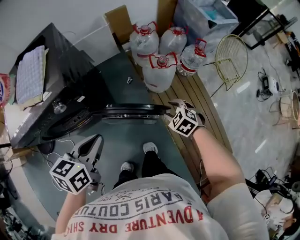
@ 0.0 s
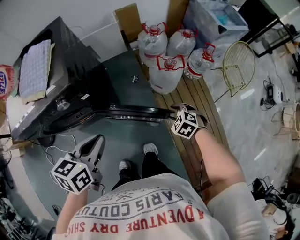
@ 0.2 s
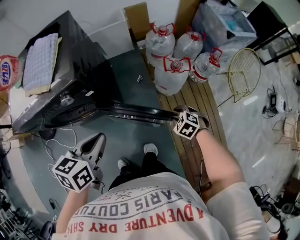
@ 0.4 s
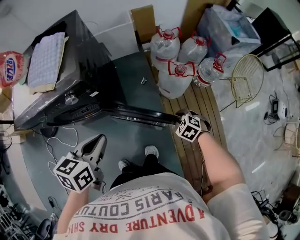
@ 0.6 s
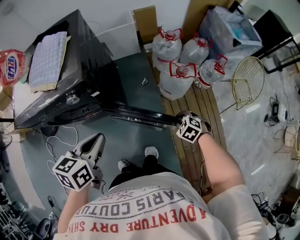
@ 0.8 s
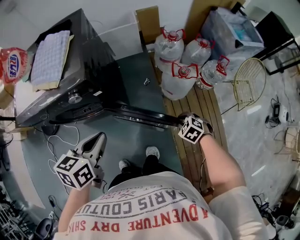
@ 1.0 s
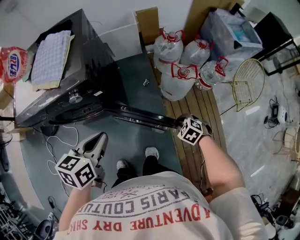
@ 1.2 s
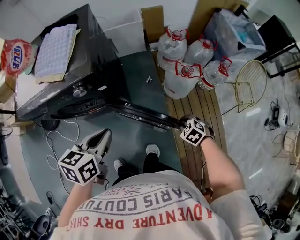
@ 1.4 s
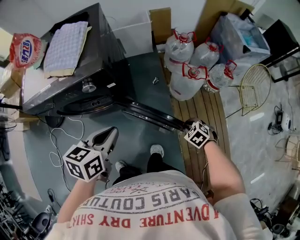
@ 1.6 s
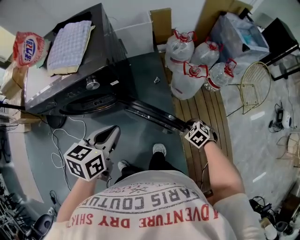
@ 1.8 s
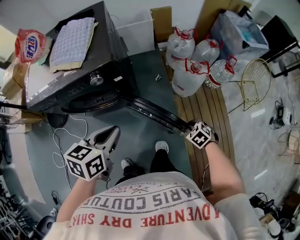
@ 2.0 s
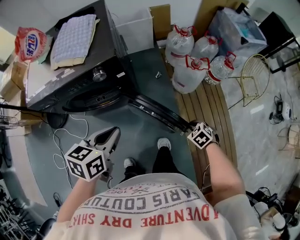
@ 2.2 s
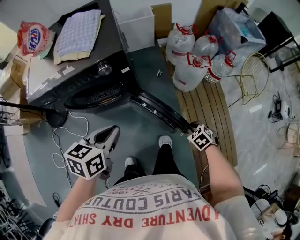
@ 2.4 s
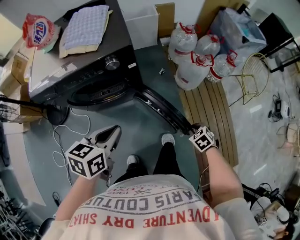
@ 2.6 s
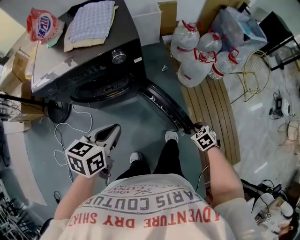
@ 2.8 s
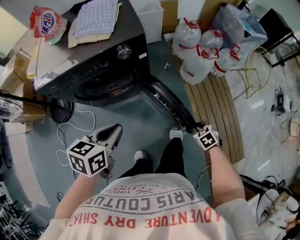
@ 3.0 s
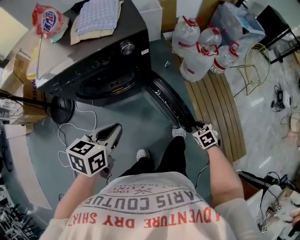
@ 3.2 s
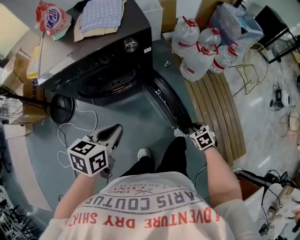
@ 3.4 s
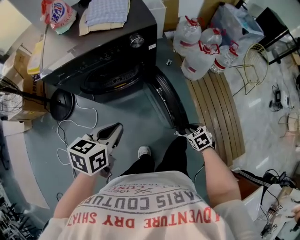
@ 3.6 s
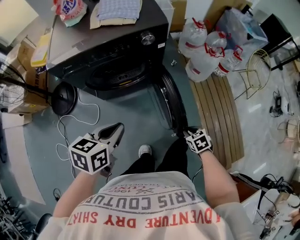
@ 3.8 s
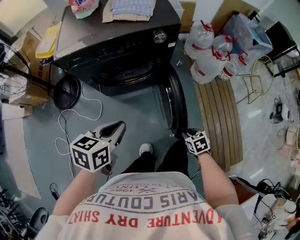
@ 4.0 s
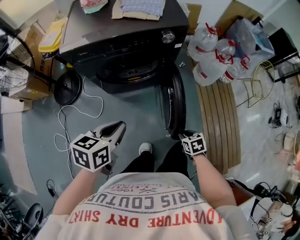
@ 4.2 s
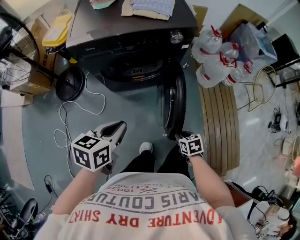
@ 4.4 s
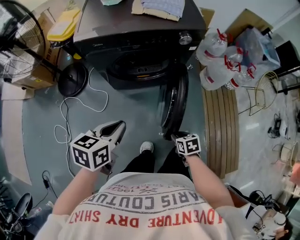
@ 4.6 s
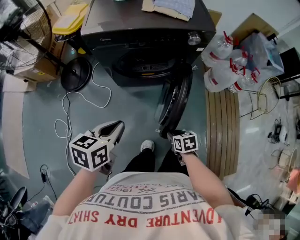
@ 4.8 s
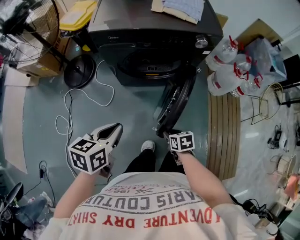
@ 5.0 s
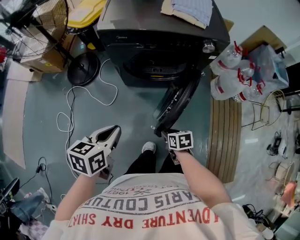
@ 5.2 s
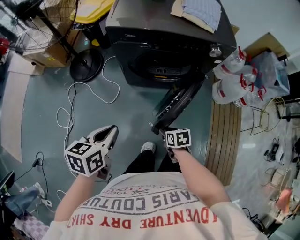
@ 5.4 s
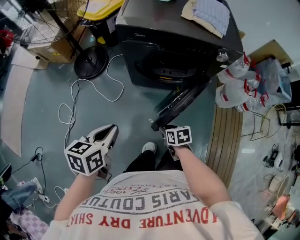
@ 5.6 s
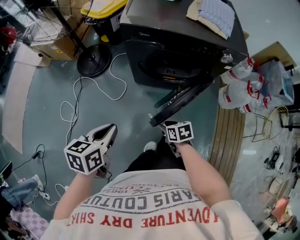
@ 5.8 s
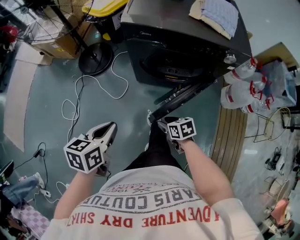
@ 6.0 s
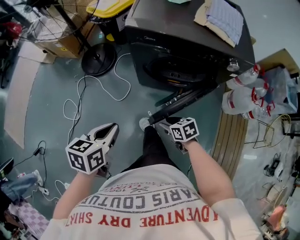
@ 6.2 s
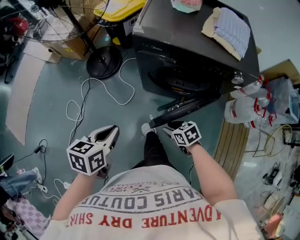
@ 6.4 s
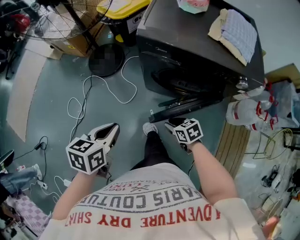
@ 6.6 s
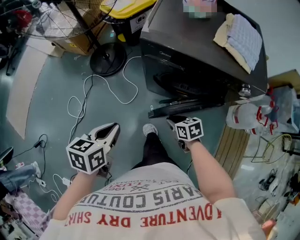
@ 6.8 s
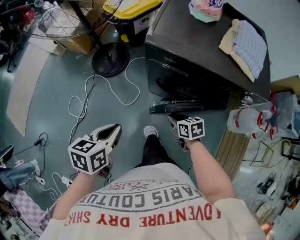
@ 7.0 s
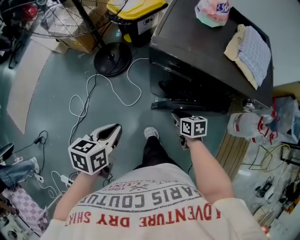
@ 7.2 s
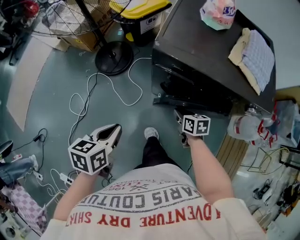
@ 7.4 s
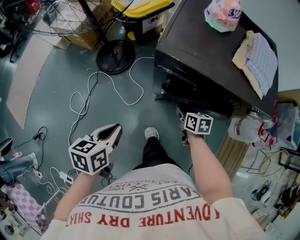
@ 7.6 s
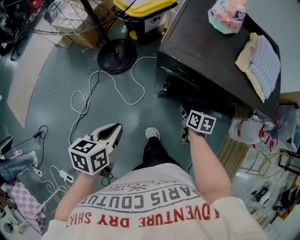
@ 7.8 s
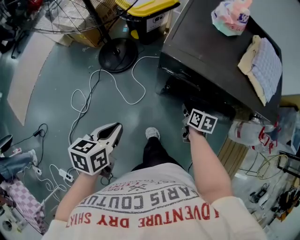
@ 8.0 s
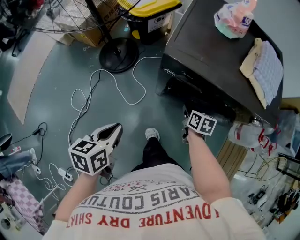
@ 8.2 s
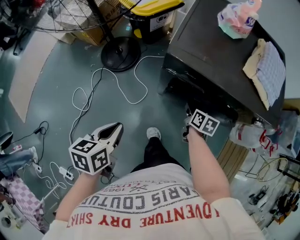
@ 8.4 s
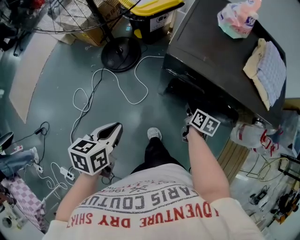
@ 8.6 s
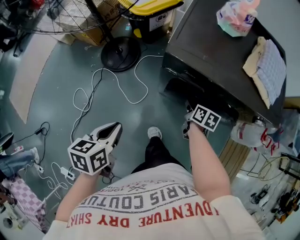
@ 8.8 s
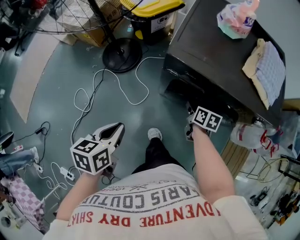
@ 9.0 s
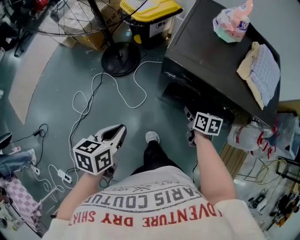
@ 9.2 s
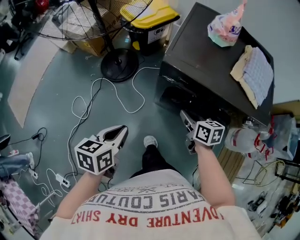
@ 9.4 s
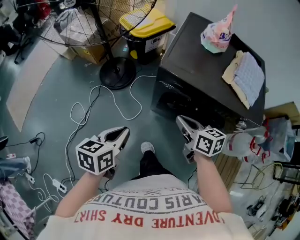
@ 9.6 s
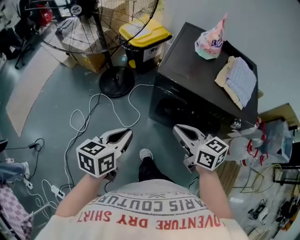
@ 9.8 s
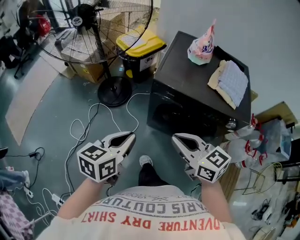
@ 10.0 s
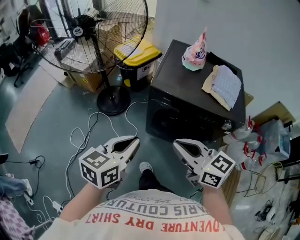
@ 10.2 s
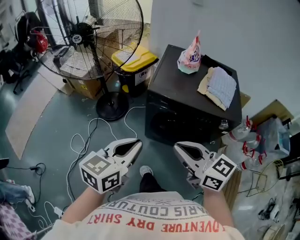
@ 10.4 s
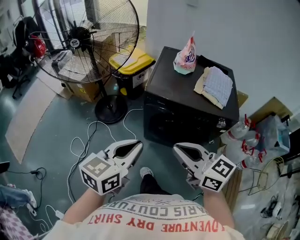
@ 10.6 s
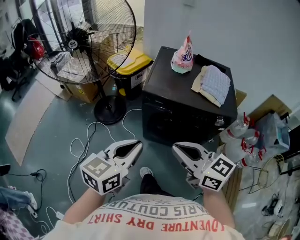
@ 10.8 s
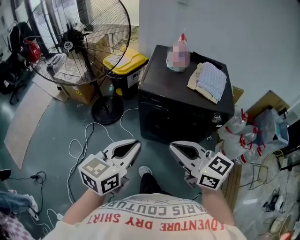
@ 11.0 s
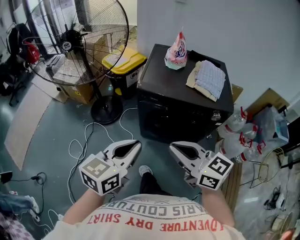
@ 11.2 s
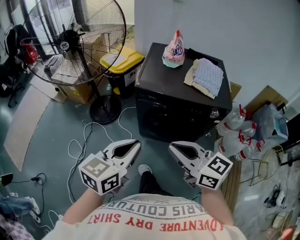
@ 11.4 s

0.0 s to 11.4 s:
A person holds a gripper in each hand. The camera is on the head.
0.0 to 1.4 s: The right gripper shifts by roughly 5 cm, and closes up.
1.4 to 2.8 s: The right gripper shifts about 20 cm backward and to the left, and changes its angle by some 20 degrees, while the left gripper goes roughly 20 cm to the left and backward.
2.8 to 4.2 s: Both grippers move to the left and backward, approximately 20 cm.
4.2 to 5.6 s: The left gripper ends up about 20 cm from where it was, and changes its angle by about 20 degrees; the right gripper moves roughly 25 cm.
5.6 to 7.2 s: The right gripper heads forward, covering some 25 cm, and closes. Meanwhile the left gripper travels forward by some 15 cm.
7.2 to 8.6 s: The right gripper moves forward, some 10 cm, and changes its angle by roughly 20 degrees.
8.6 to 10.0 s: The right gripper heads upward and backward, covering roughly 35 cm, and rotates about 50 degrees. The left gripper is displaced upward and to the right by about 15 cm, and changes its angle by roughly 20 degrees.
10.0 to 11.4 s: The right gripper is displaced backward and upward by about 10 cm; the left gripper travels upward, to the right and backward by approximately 10 cm.

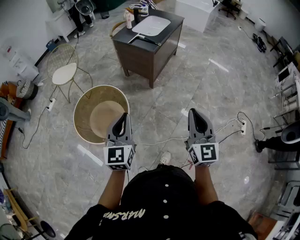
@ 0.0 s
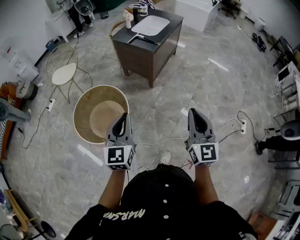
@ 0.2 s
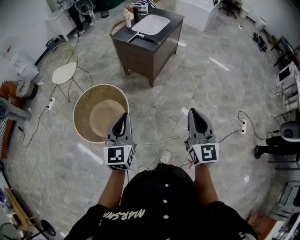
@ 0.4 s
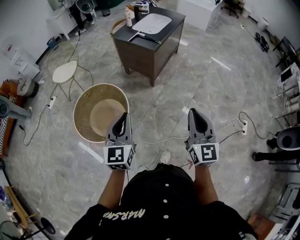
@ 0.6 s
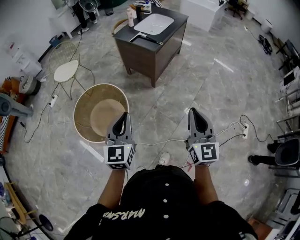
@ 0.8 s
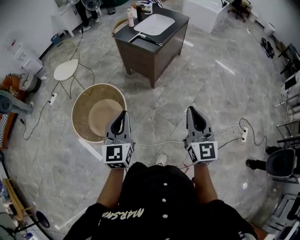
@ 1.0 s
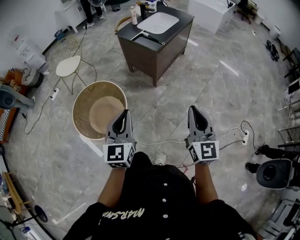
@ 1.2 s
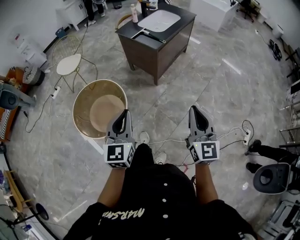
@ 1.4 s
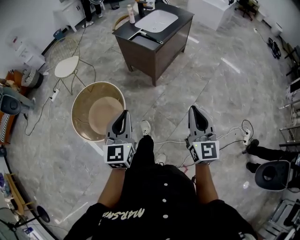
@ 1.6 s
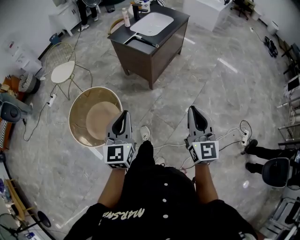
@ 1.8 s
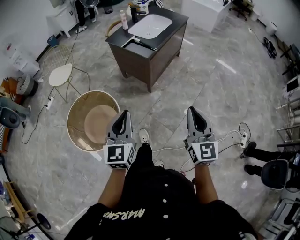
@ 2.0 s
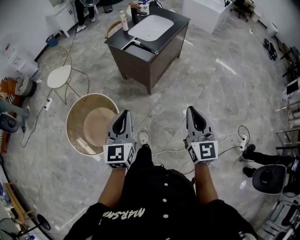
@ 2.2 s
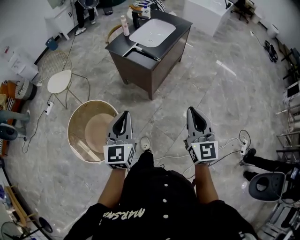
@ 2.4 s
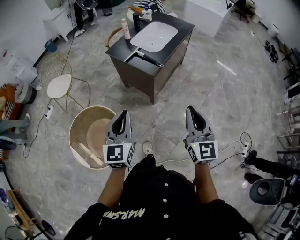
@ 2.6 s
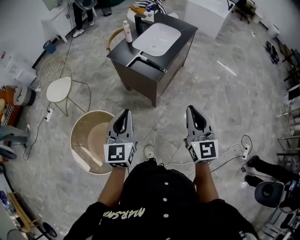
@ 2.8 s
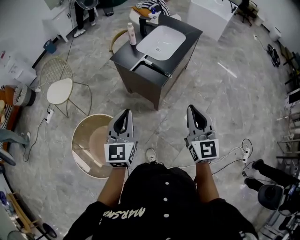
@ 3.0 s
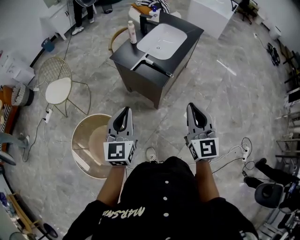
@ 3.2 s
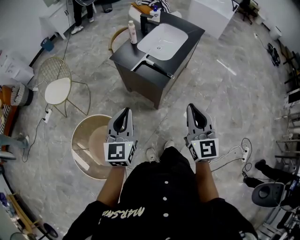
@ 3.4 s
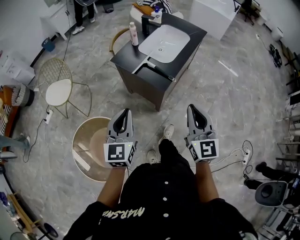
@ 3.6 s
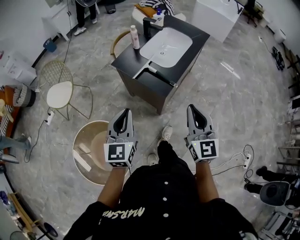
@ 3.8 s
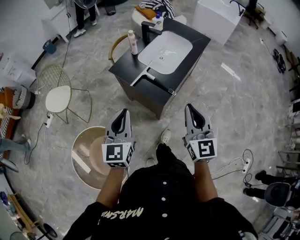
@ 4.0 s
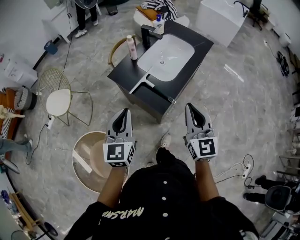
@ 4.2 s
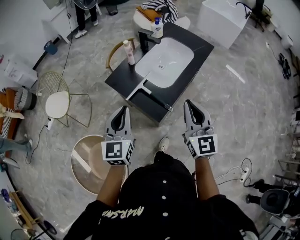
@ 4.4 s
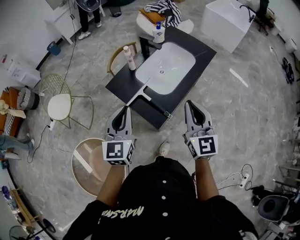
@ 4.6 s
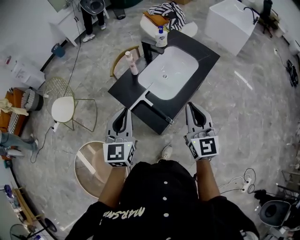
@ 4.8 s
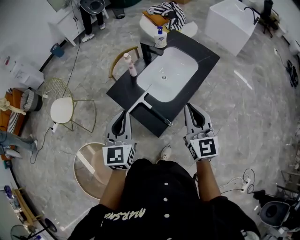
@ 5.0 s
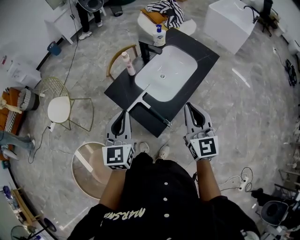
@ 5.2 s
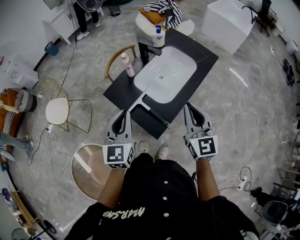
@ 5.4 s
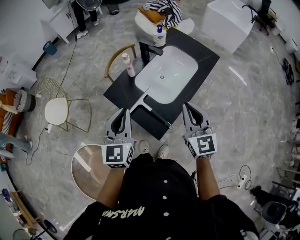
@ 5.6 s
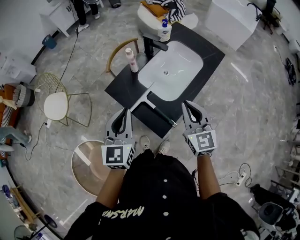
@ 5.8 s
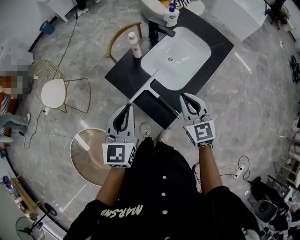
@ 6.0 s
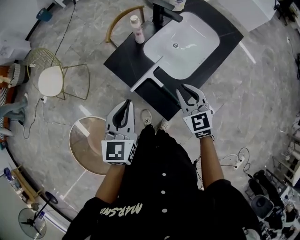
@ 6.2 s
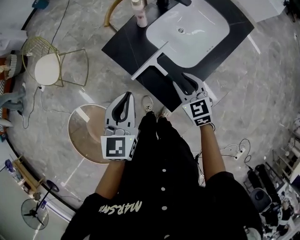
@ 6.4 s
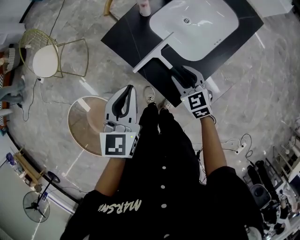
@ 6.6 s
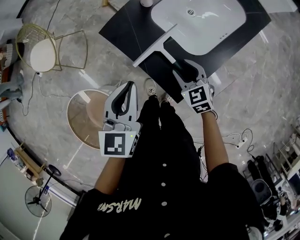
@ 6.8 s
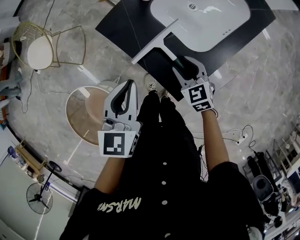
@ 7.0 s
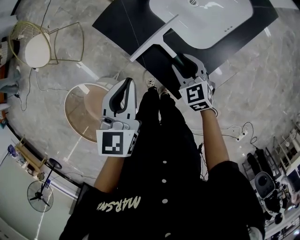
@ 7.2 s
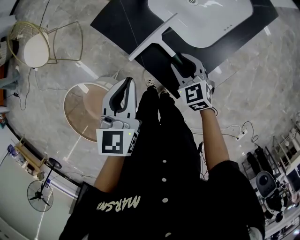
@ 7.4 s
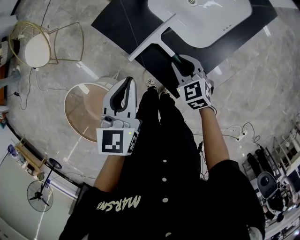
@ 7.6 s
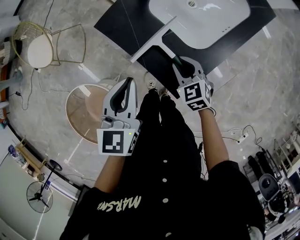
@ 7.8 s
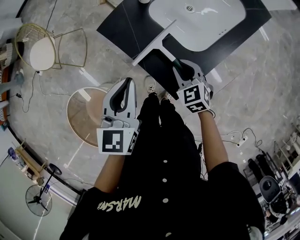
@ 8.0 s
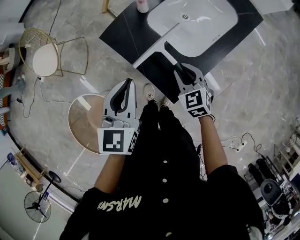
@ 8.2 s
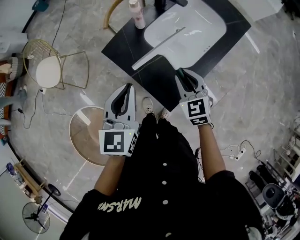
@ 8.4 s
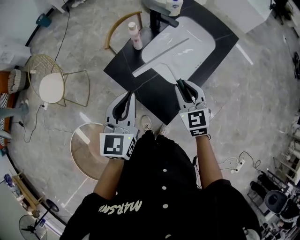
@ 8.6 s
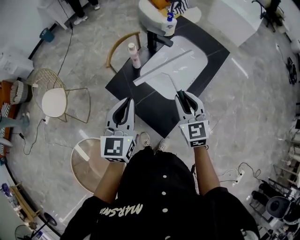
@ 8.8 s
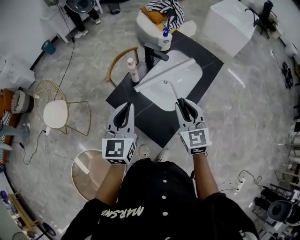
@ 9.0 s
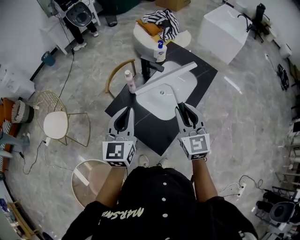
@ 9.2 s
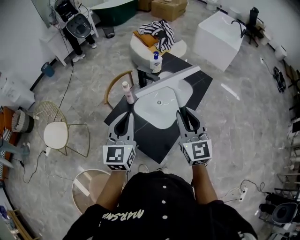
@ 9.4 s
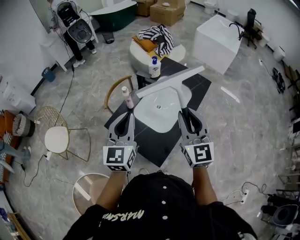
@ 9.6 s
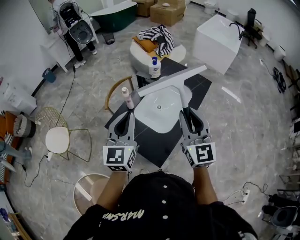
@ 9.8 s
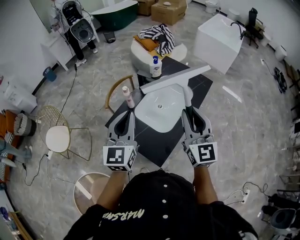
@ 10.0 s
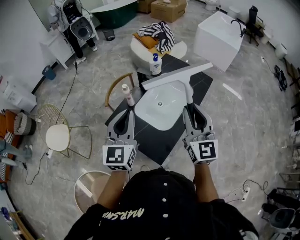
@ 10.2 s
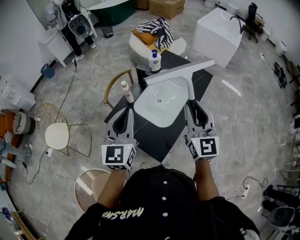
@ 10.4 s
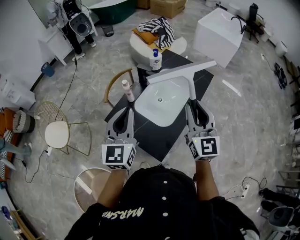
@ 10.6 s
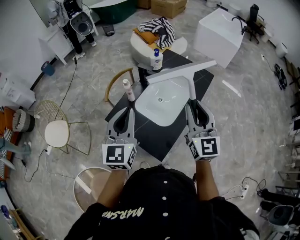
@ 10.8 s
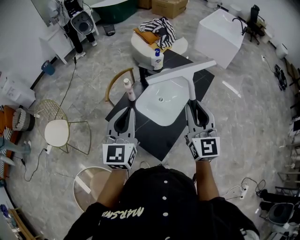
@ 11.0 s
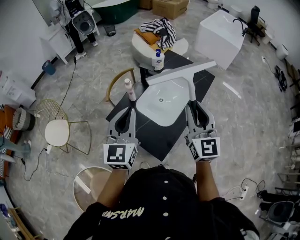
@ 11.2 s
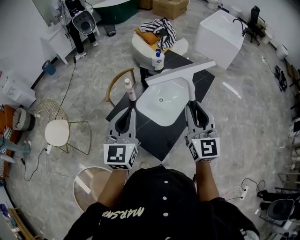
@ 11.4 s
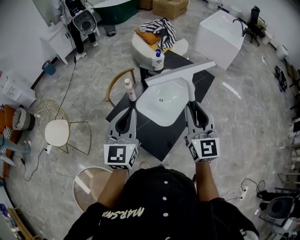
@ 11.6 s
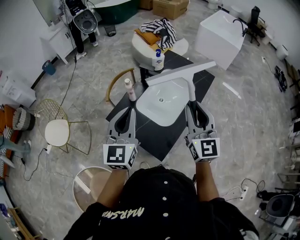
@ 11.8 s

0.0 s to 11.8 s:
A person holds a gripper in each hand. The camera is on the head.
0.0 to 1.4 s: The right gripper heads forward and to the right, covering about 10 cm, while the left gripper shifts roughly 10 cm to the right and forward.
1.4 to 3.0 s: The grippers both shift forward by about 35 cm.
3.0 to 4.4 s: The two grippers go approximately 25 cm forward.
4.4 to 6.0 s: The left gripper is displaced forward by approximately 10 cm. The right gripper travels forward and downward by about 20 cm, and changes its angle by about 20 degrees.
6.0 to 7.4 s: The right gripper travels downward by about 25 cm, changes its angle by about 30 degrees, and opens up. Meanwhile the left gripper goes roughly 15 cm downward.
7.4 to 8.8 s: The left gripper is displaced upward by some 15 cm. The right gripper heads upward, covering roughly 25 cm, and turns by approximately 30 degrees.
8.8 to 10.4 s: The right gripper heads upward and to the right, covering approximately 20 cm, and turns by roughly 30 degrees. The left gripper goes roughly 10 cm upward.
10.4 to 11.8 s: The grippers make only small movements.
